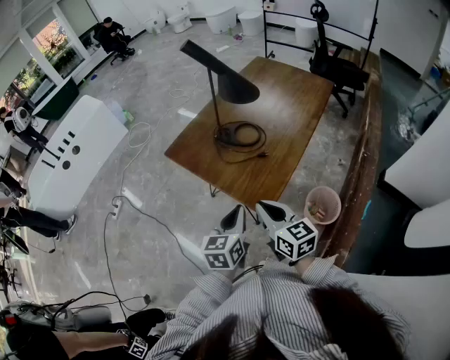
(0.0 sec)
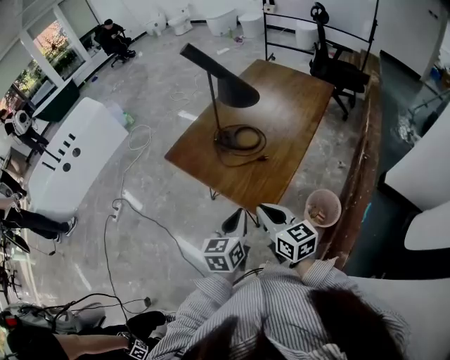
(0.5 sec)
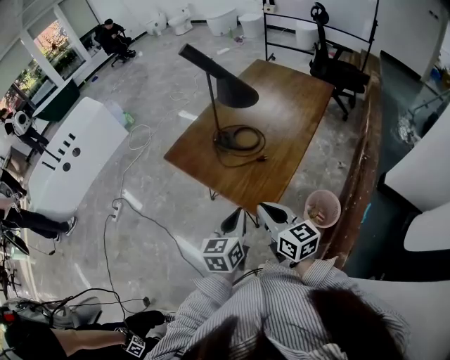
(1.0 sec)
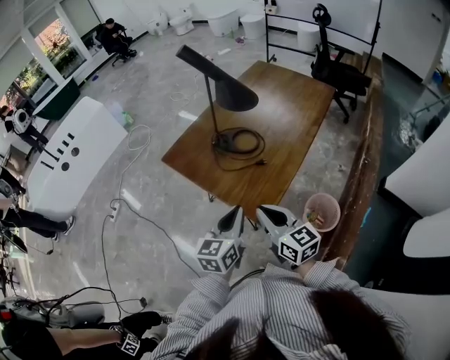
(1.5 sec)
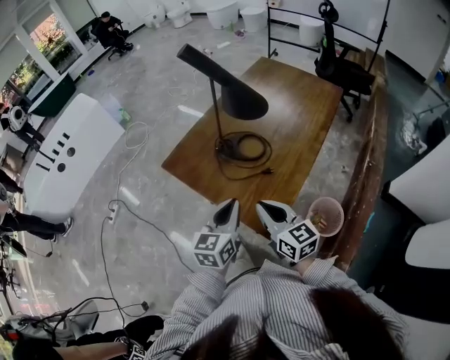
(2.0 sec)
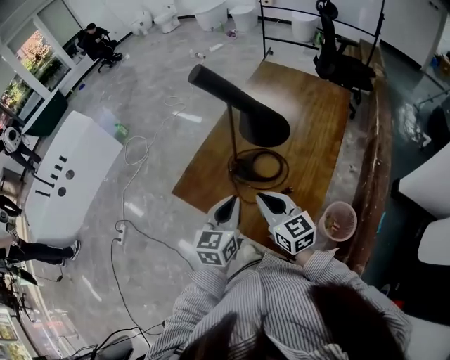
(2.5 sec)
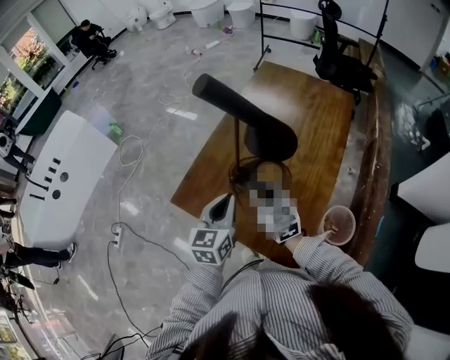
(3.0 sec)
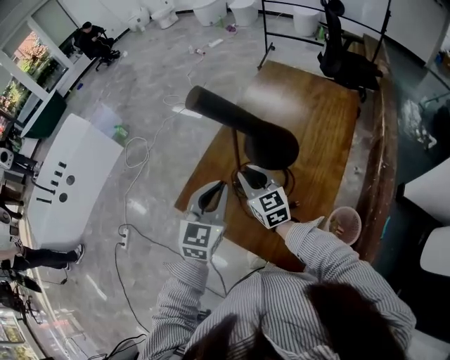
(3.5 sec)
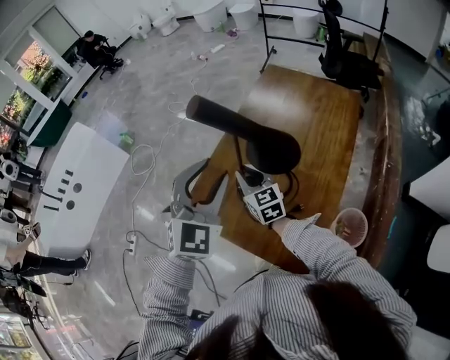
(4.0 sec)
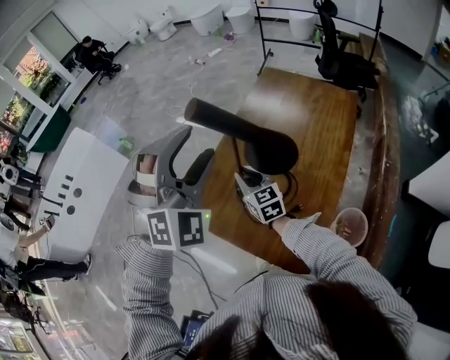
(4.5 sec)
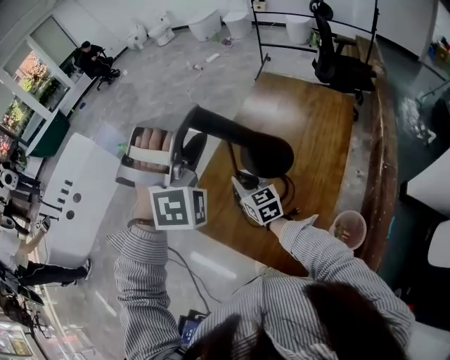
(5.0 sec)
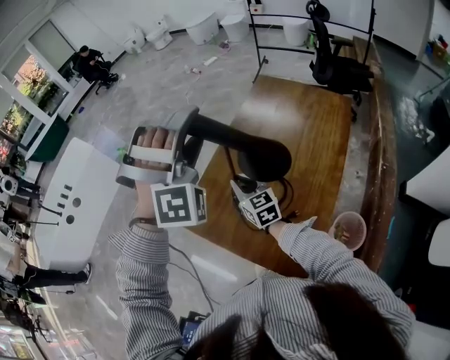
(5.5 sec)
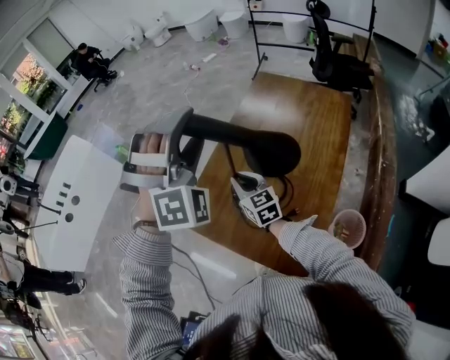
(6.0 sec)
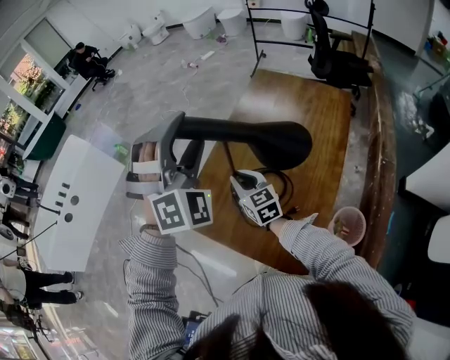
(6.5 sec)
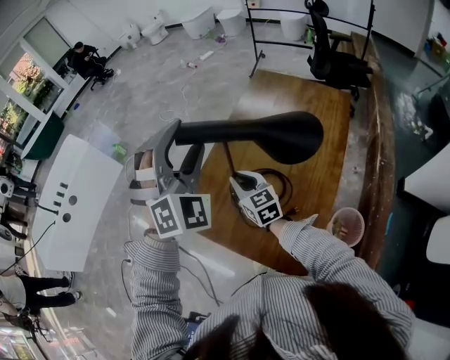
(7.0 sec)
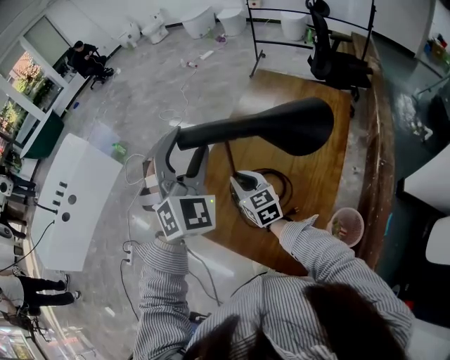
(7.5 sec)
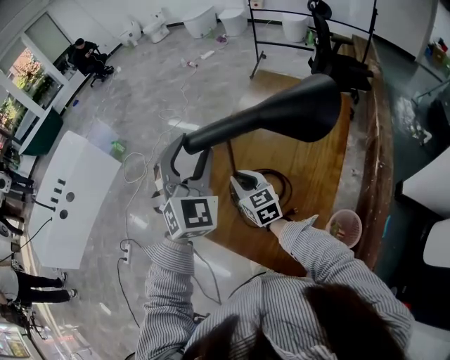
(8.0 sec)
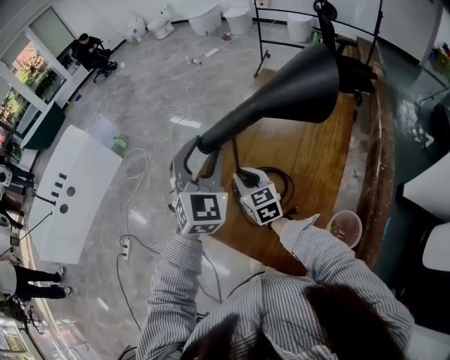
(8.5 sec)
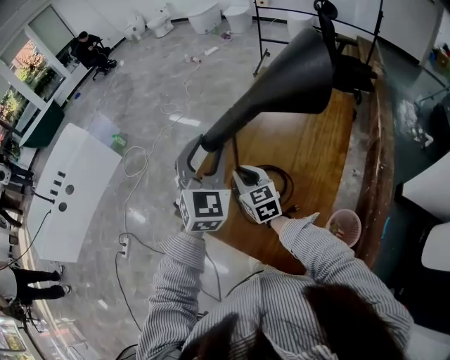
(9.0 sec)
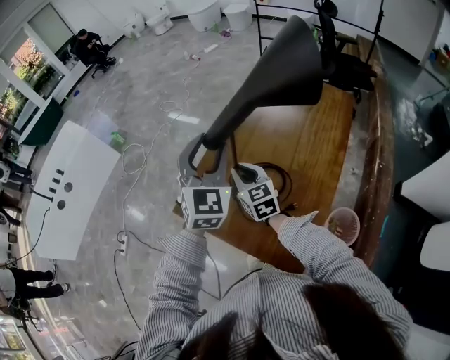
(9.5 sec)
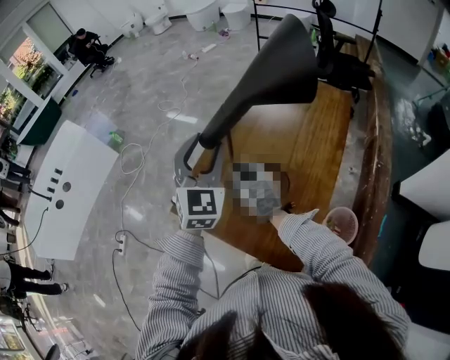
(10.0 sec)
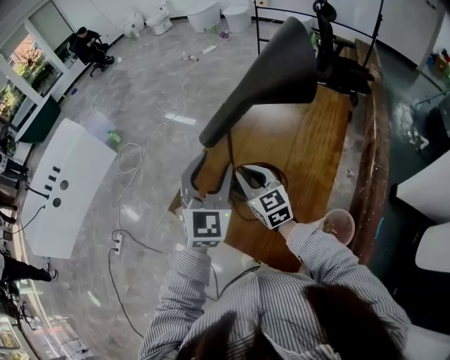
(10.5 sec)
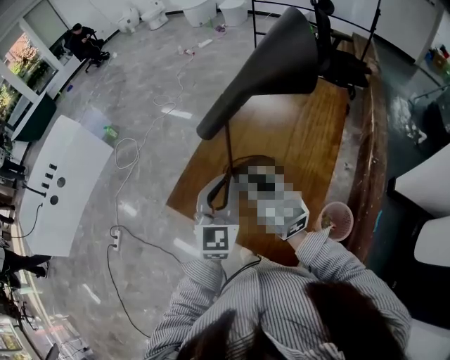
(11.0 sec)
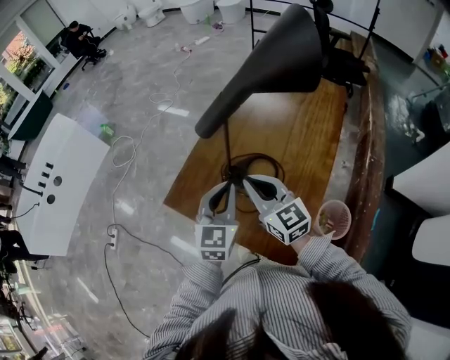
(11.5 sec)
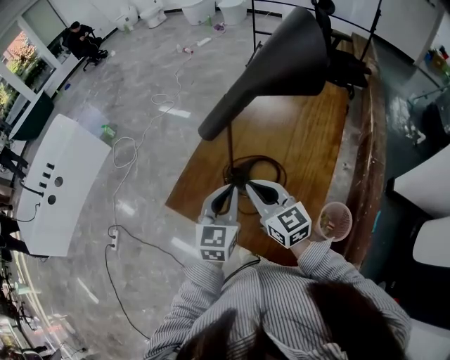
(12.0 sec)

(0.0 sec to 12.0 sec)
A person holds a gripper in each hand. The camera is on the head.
0.0 sec - 2.0 sec: The grippers both shift forward by some 10 cm.
2.0 sec - 4.0 sec: The right gripper shifts roughly 30 cm forward. The left gripper travels forward and upward by approximately 30 cm, rolls clockwise, seen from behind, by about 60 degrees, and opens its fingers.
4.0 sec - 6.0 sec: The left gripper moves upward and forward, some 10 cm, rotates around the line of its fingers by roughly 50 degrees, clockwise from behind, and opens its fingers.
6.0 sec - 8.0 sec: The left gripper heads downward, covering about 5 cm, and rolls counterclockwise, seen from behind, by roughly 40 degrees.
8.0 sec - 10.0 sec: The grippers make only small movements.
10.0 sec - 12.0 sec: The right gripper is displaced backward and upward by roughly 10 cm. The left gripper heads downward and backward, covering roughly 15 cm, rotates some 30 degrees, and closes its fingers.

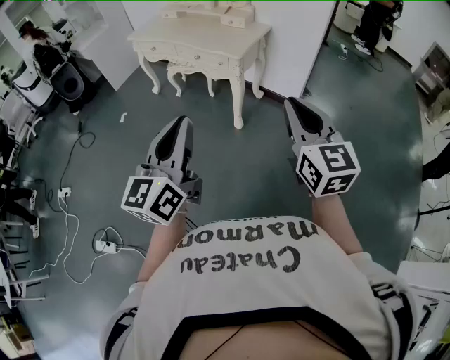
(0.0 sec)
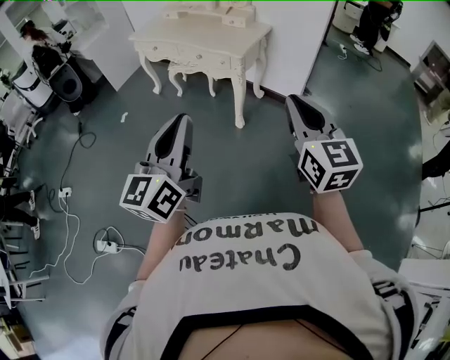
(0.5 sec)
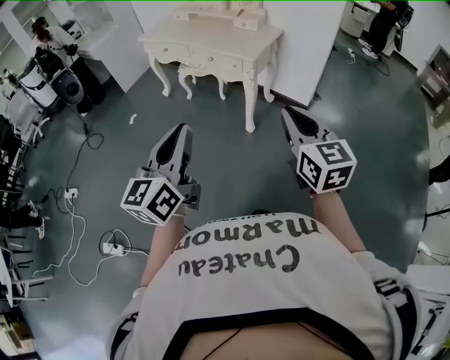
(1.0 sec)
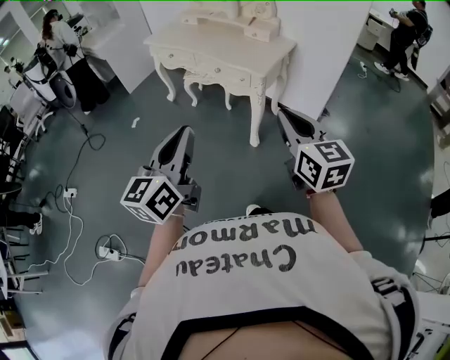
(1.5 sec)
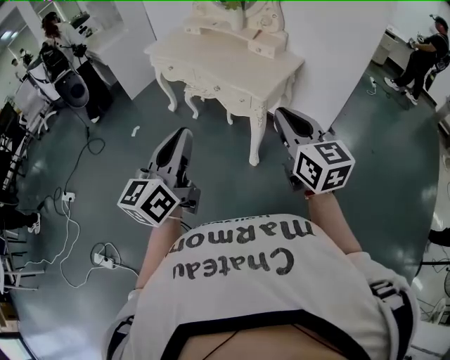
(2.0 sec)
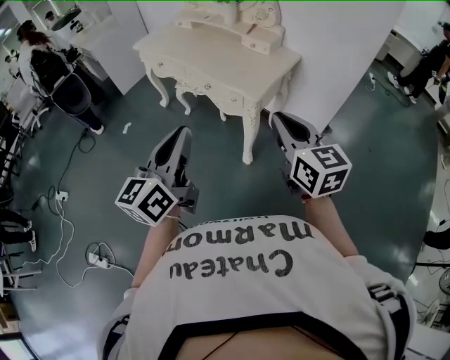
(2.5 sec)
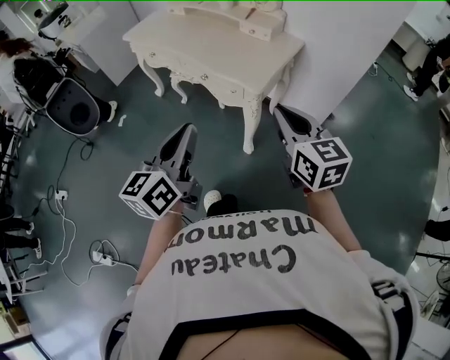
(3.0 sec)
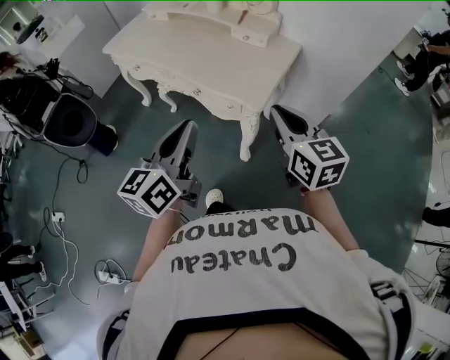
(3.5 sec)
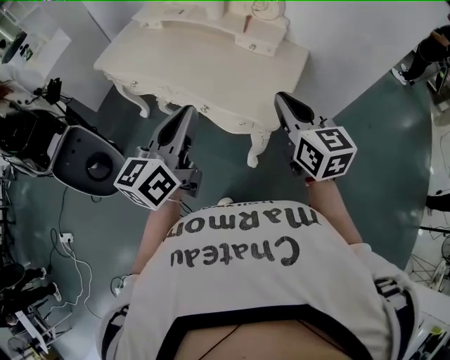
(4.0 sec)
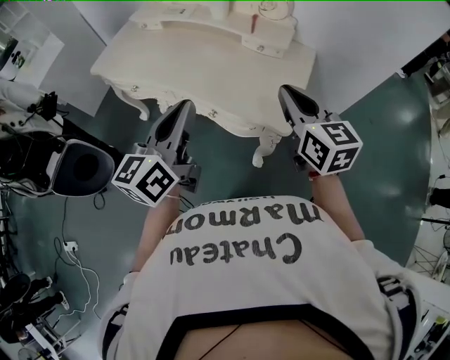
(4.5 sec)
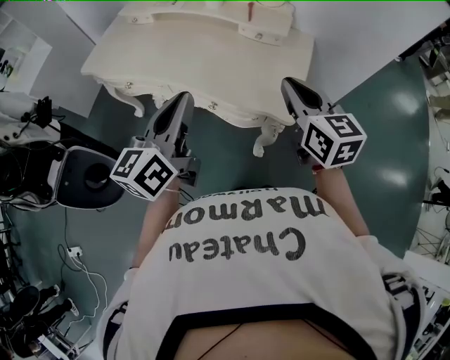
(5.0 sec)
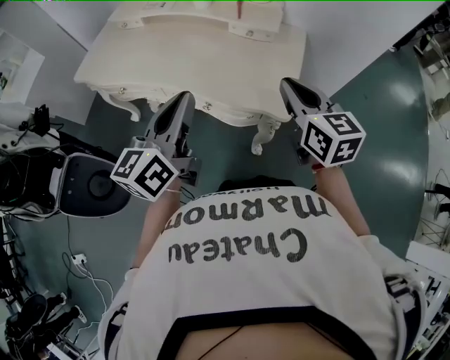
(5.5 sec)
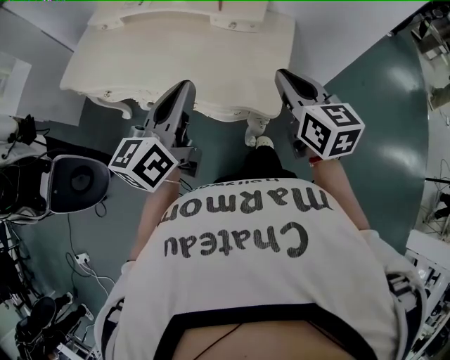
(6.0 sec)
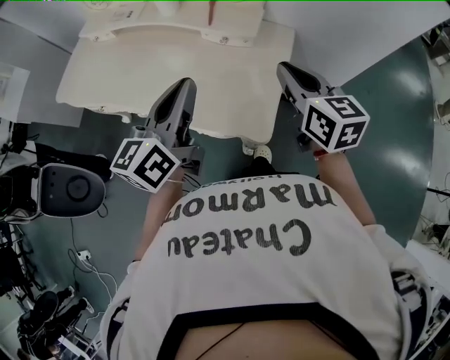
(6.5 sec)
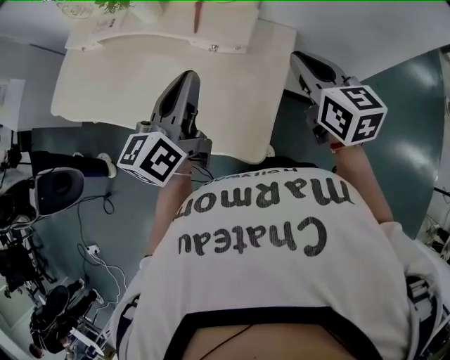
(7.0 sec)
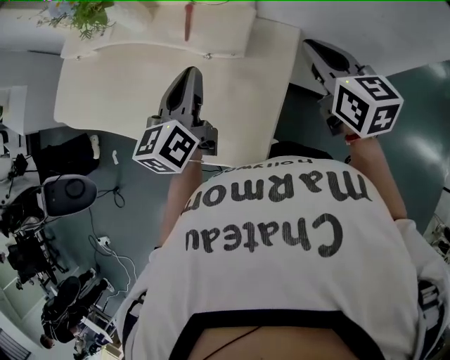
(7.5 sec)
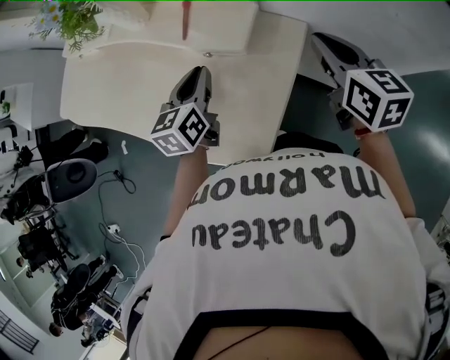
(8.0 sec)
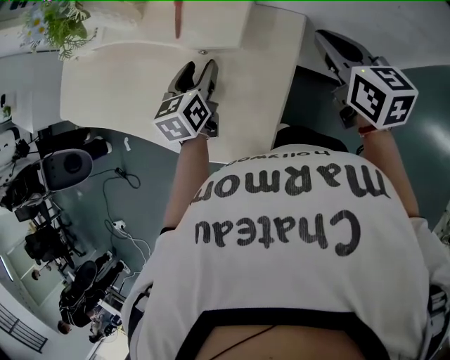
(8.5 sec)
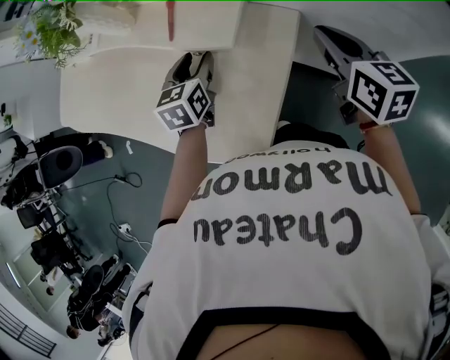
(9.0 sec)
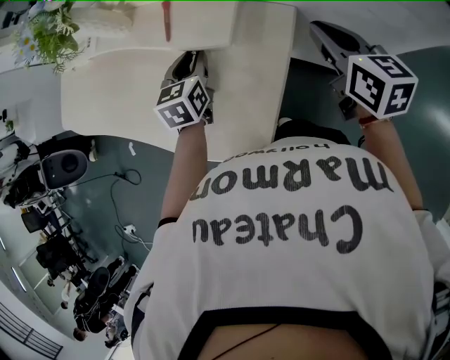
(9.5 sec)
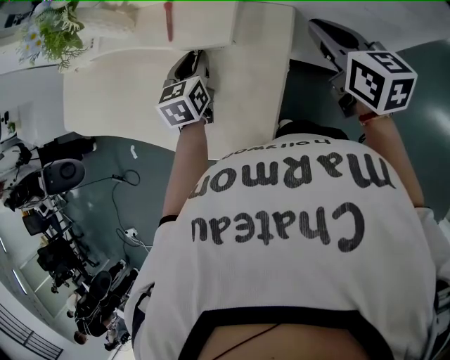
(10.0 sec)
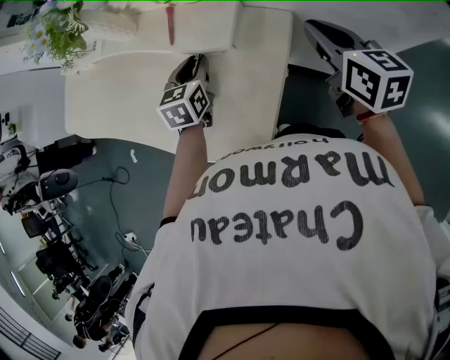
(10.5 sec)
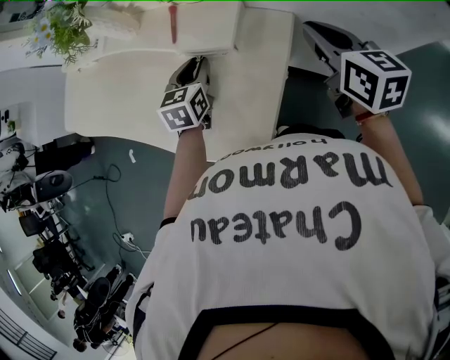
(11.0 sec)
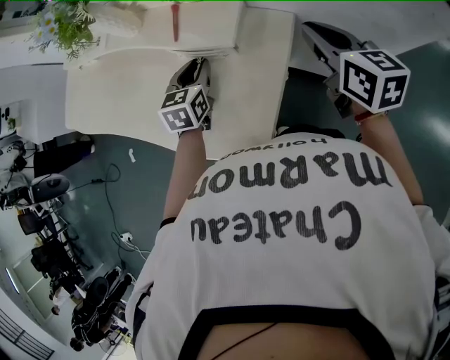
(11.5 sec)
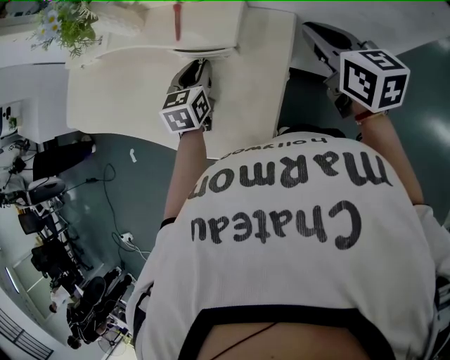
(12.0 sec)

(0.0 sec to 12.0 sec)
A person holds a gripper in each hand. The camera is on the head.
0.0 sec - 2.0 sec: The grippers both shift forward by approximately 25 cm.
2.0 sec - 4.0 sec: Both grippers move forward, about 35 cm.
4.0 sec - 6.0 sec: The right gripper goes roughly 5 cm forward; the left gripper travels forward by some 10 cm.
6.0 sec - 8.0 sec: The left gripper moves forward, downward and to the right, approximately 35 cm, and rotates approximately 30 degrees, while the right gripper heads forward and to the right, covering approximately 35 cm.
8.0 sec - 10.0 sec: The left gripper shifts by approximately 5 cm, and opens, then closes once more.
10.0 sec - 12.0 sec: The grippers stay close to where they were, moving slightly.

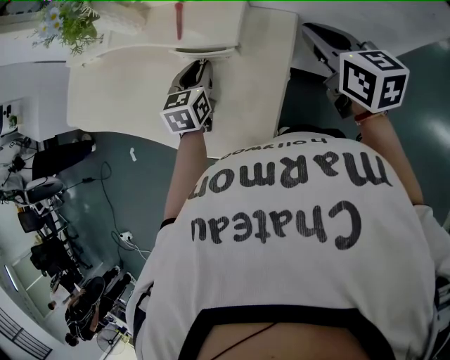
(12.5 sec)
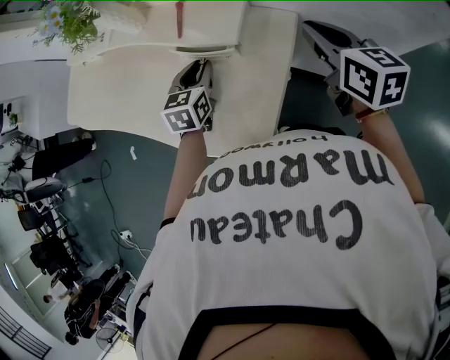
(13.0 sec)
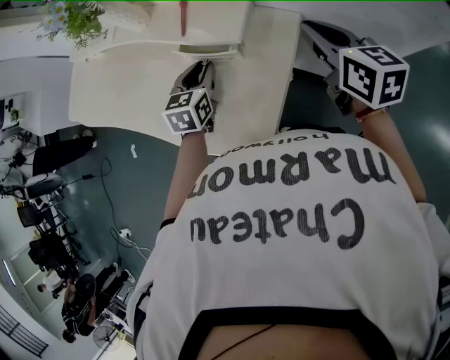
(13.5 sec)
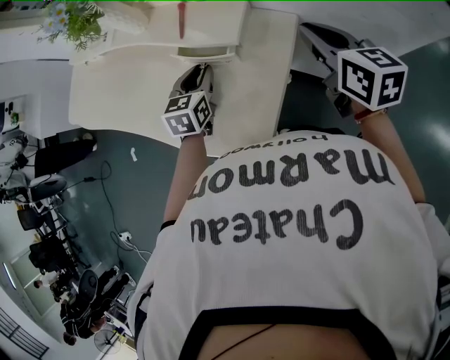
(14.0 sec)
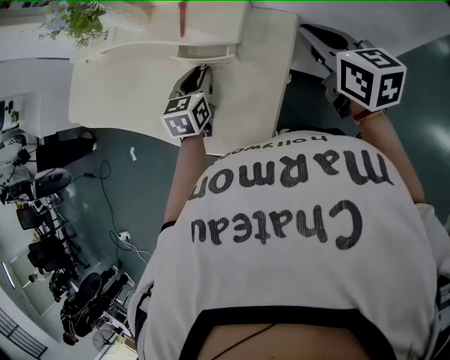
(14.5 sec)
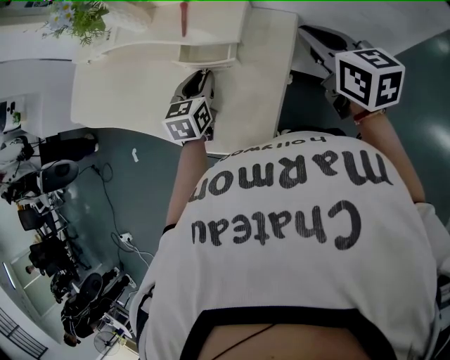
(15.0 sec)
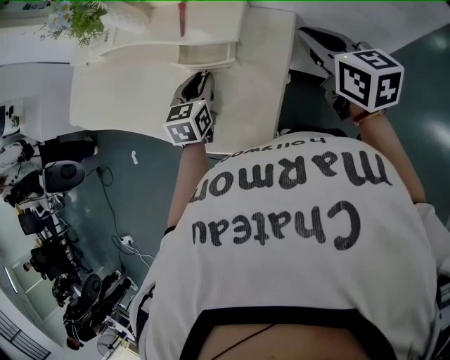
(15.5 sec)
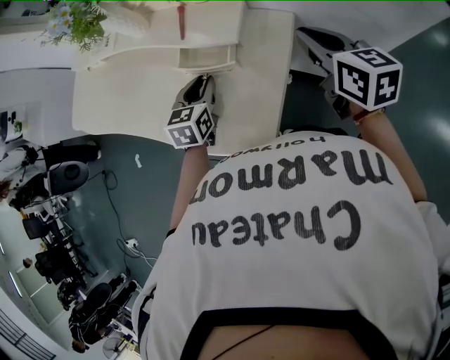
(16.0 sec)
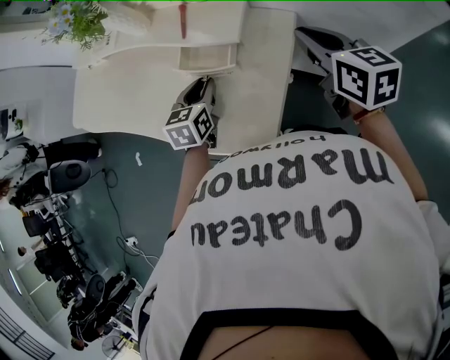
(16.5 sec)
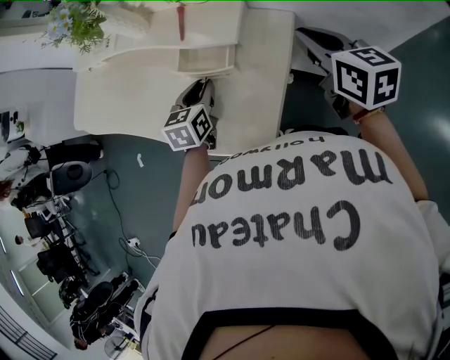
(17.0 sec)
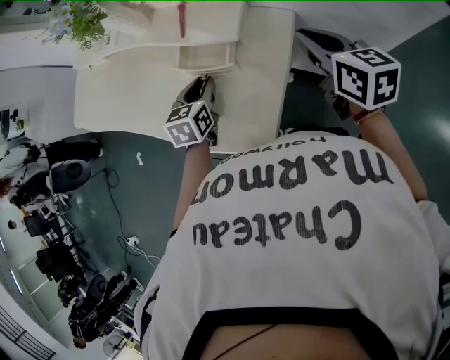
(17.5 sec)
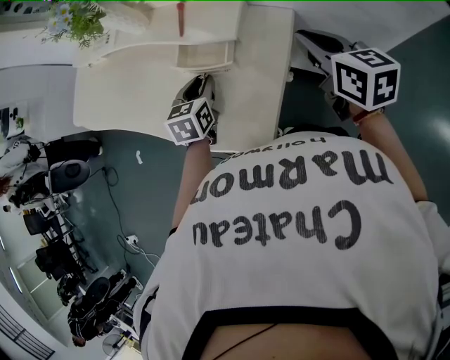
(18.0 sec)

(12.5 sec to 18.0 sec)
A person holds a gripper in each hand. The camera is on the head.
12.5 sec - 18.0 sec: There are only small adjustments of the grippers.
